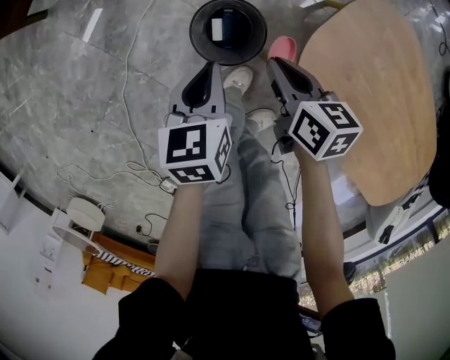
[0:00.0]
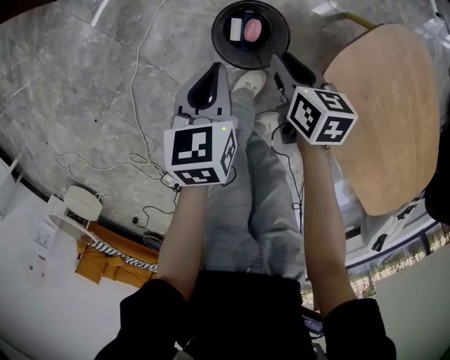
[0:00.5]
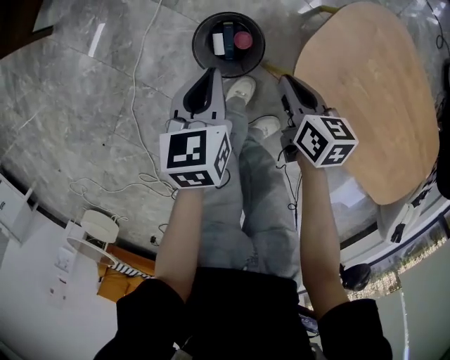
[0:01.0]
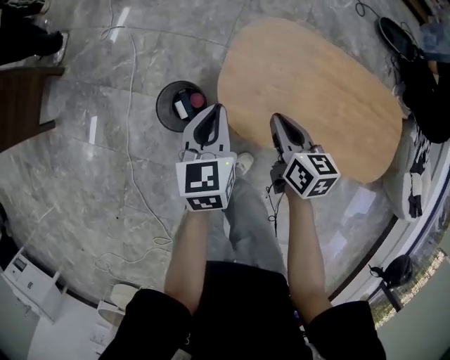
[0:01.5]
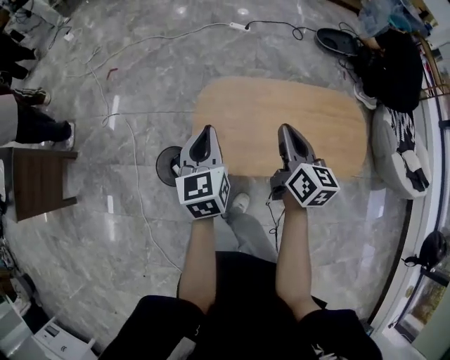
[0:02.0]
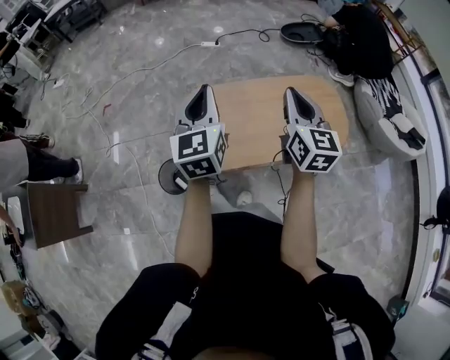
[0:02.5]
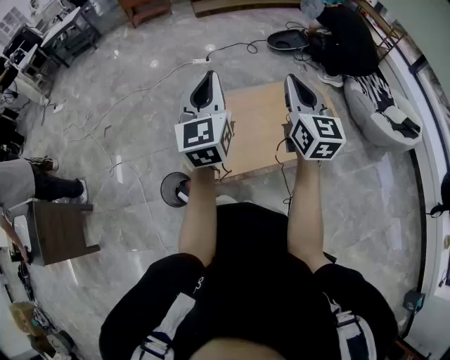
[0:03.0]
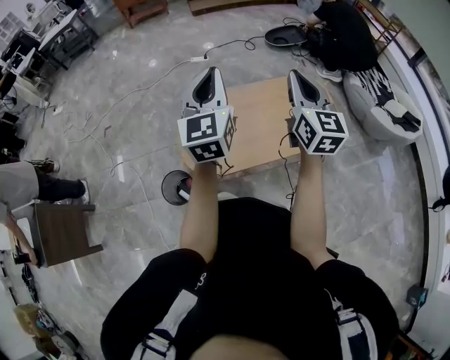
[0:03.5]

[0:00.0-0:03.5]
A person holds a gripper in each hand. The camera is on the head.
0:00.0 to 0:02.0: Both grippers move upward, about 40 cm. The right gripper changes its angle by roughly 60 degrees, while the left gripper changes its angle by approximately 40 degrees.
0:02.0 to 0:03.5: Both grippers move upward and to the right, about 30 cm. The right gripper swivels some 30 degrees. Meanwhile the left gripper rotates approximately 30 degrees.

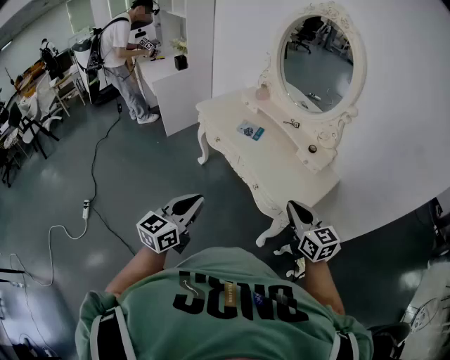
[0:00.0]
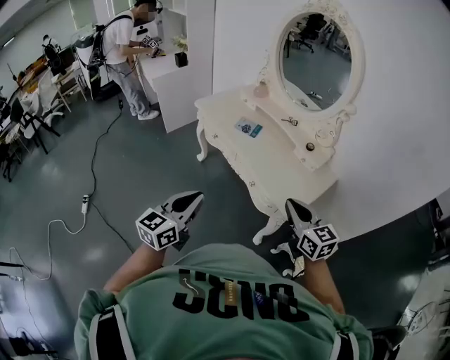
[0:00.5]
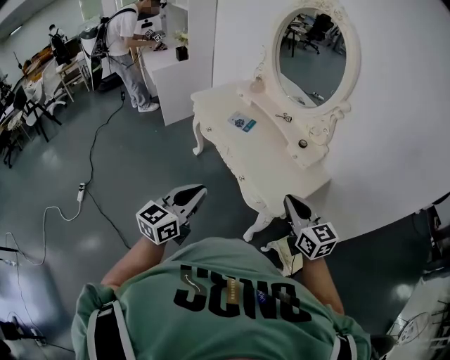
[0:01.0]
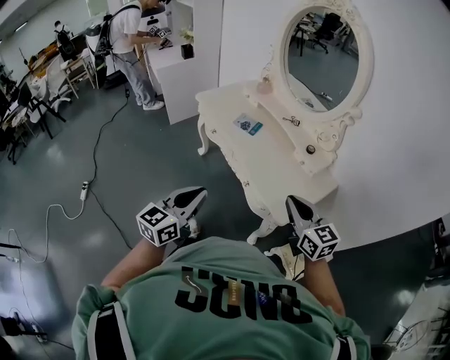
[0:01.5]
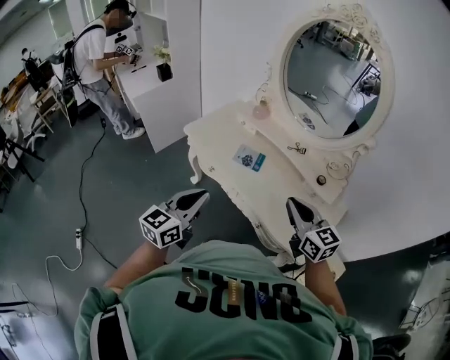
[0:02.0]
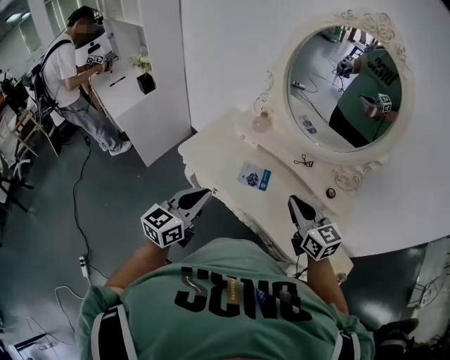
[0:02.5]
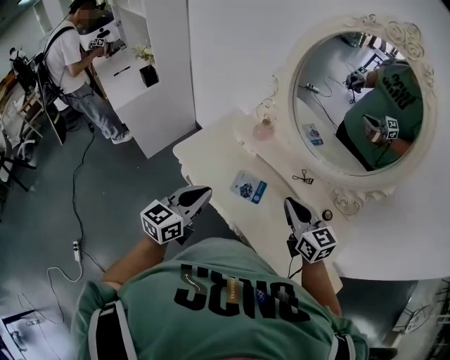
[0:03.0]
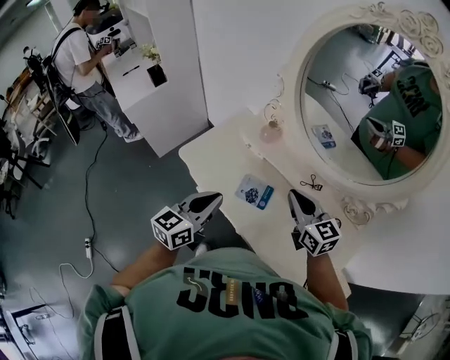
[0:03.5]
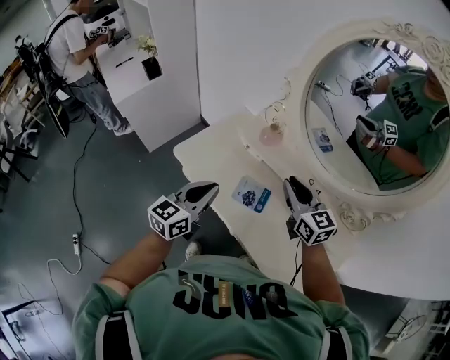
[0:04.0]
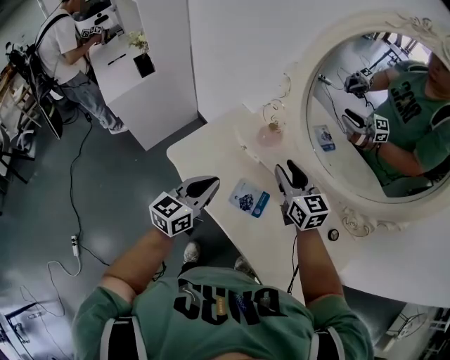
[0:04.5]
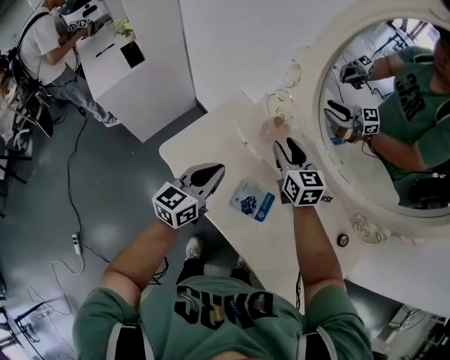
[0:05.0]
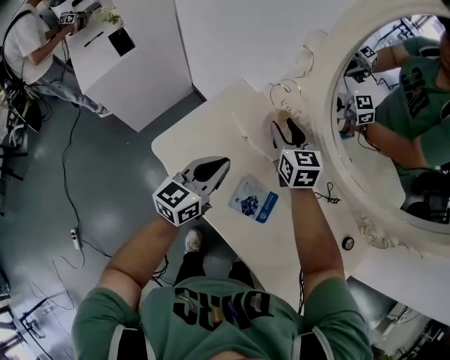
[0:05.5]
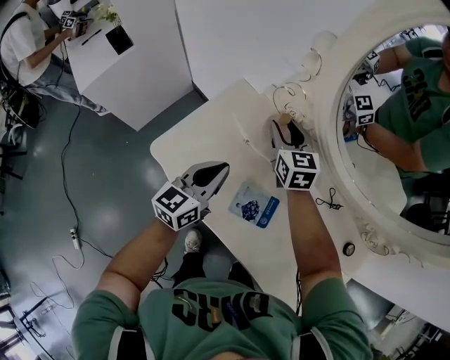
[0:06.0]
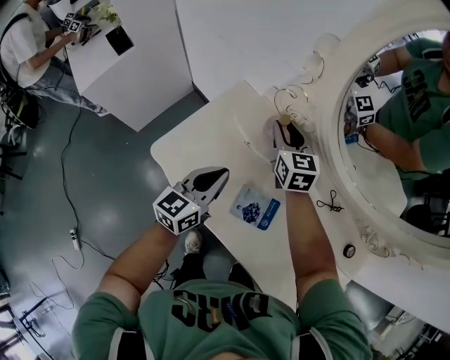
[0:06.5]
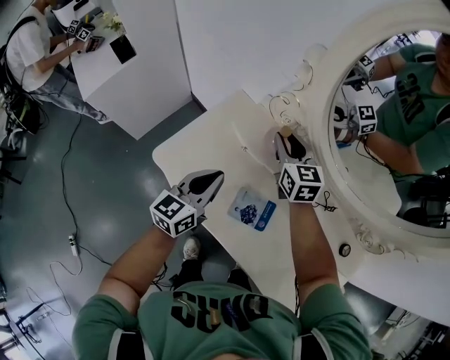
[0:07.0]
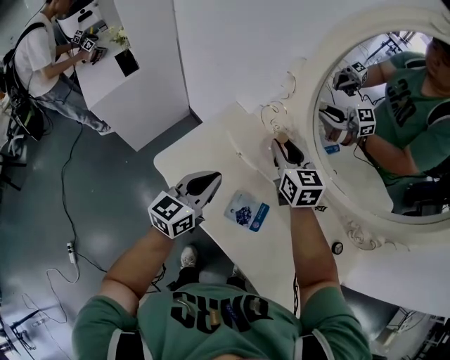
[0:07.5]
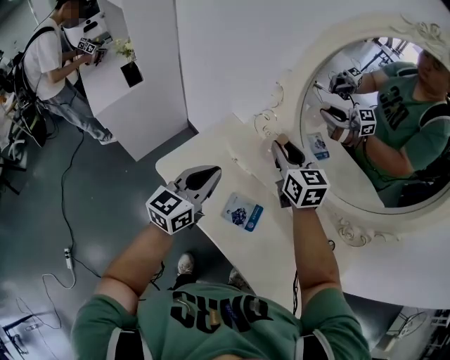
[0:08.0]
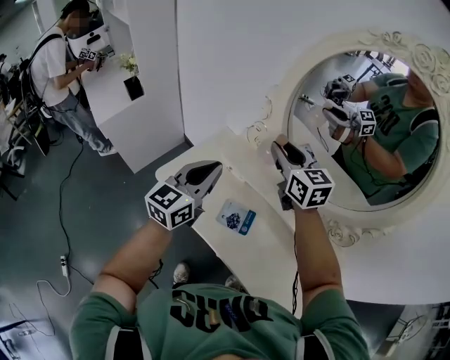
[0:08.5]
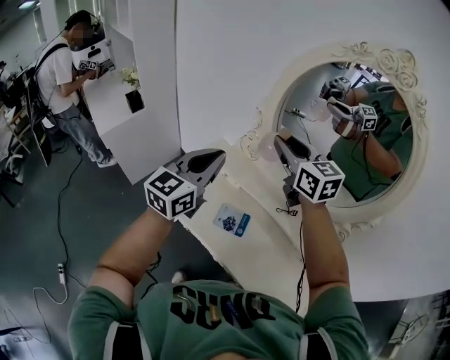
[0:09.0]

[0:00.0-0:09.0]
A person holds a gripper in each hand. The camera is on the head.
0:00.0 to 0:02.0: The two grippers go roughly 25 cm forward.
0:02.0 to 0:04.5: Both grippers move forward, roughly 35 cm. The right gripper opens its fingers.
0:04.5 to 0:07.0: The two grippers go some 15 cm forward and downward.
0:07.0 to 0:09.0: The two grippers go about 30 cm upward.

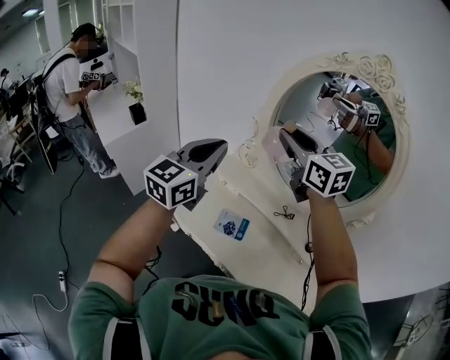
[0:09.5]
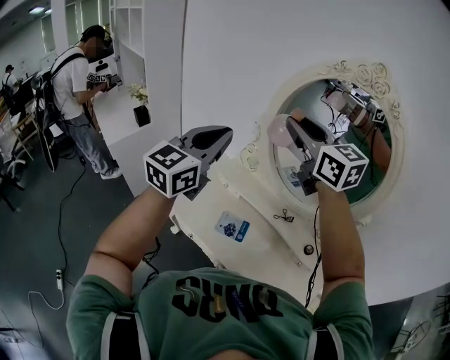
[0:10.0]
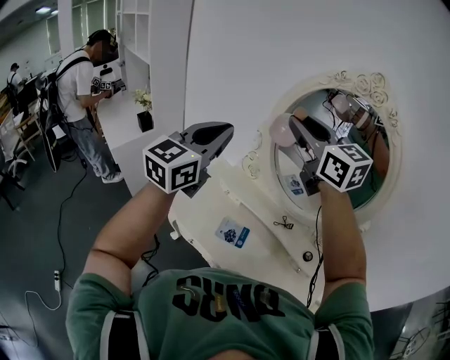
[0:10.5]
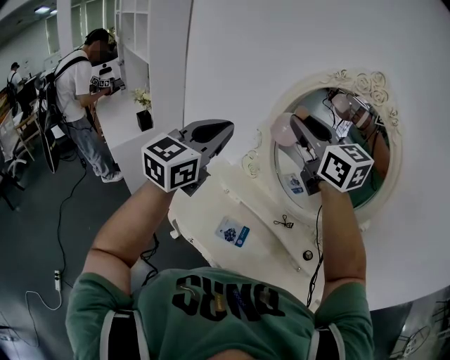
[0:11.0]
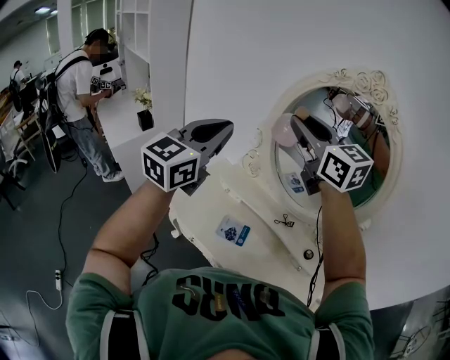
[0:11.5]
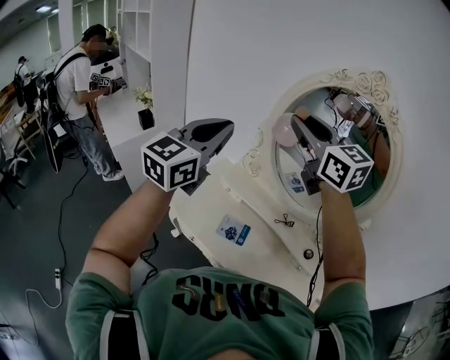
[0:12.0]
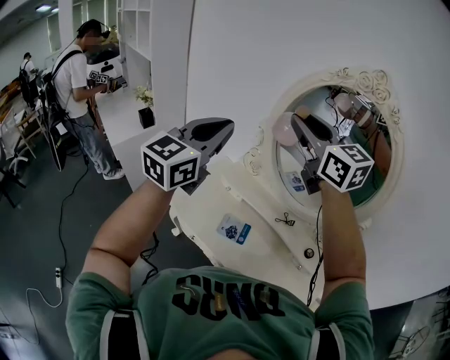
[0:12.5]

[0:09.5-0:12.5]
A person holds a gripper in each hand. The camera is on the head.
0:09.5 to 0:11.0: Both grippers travel together upward, approximately 10 cm.
0:11.0 to 0:12.5: Both grippers stay put.

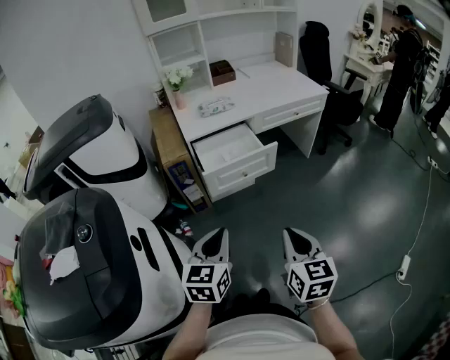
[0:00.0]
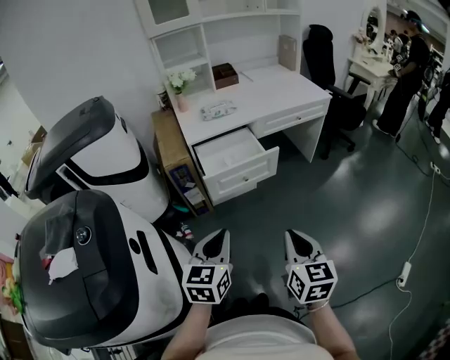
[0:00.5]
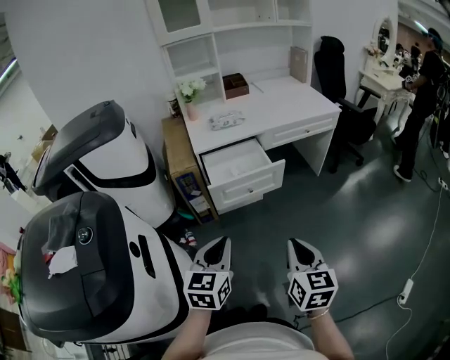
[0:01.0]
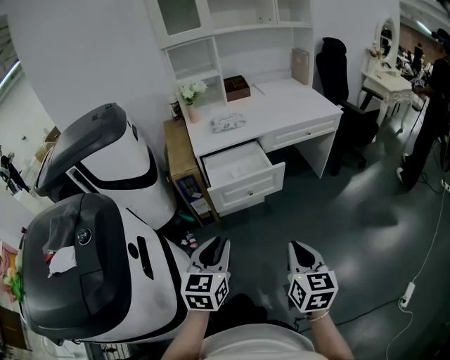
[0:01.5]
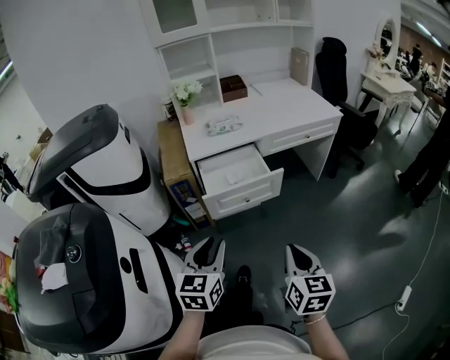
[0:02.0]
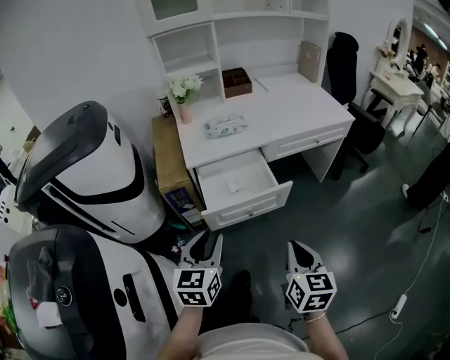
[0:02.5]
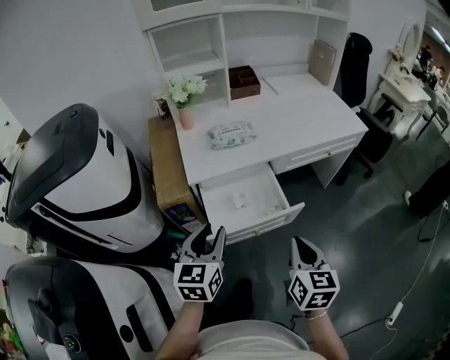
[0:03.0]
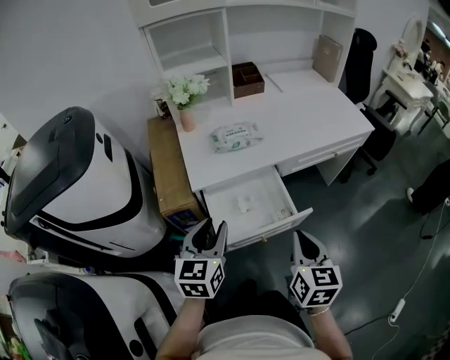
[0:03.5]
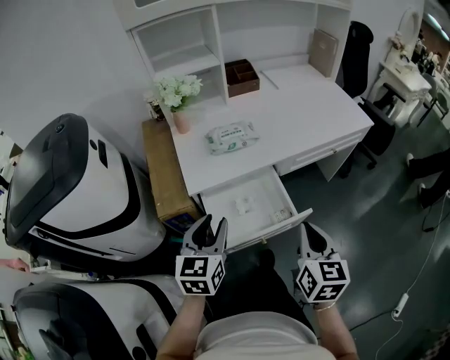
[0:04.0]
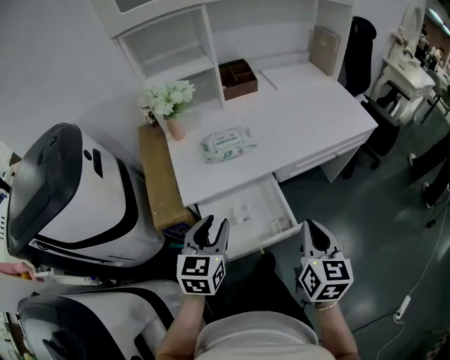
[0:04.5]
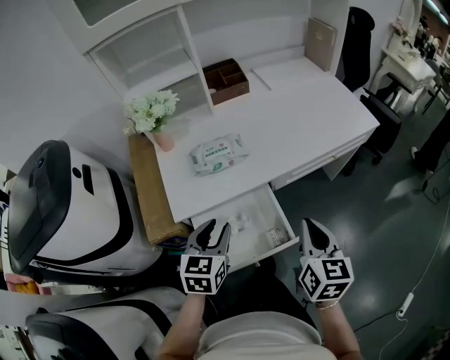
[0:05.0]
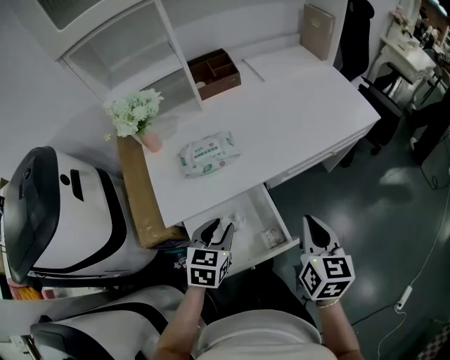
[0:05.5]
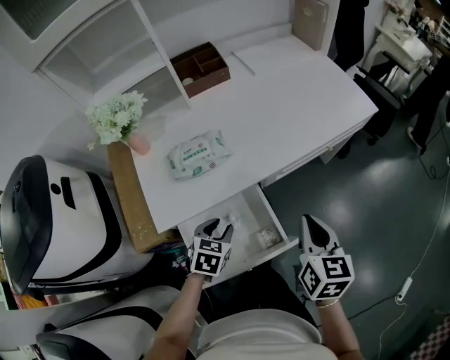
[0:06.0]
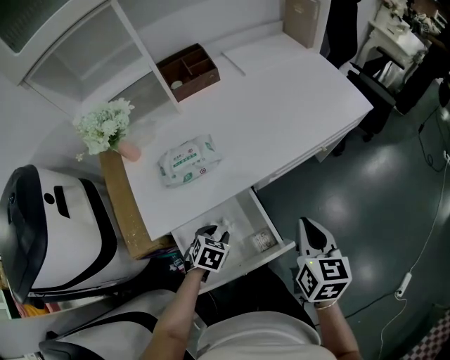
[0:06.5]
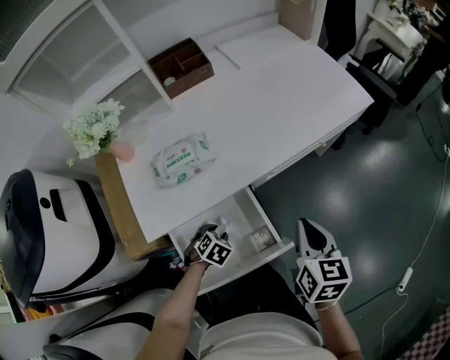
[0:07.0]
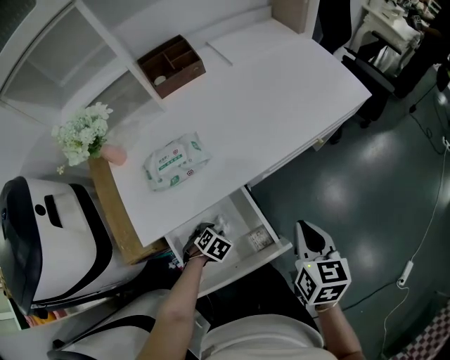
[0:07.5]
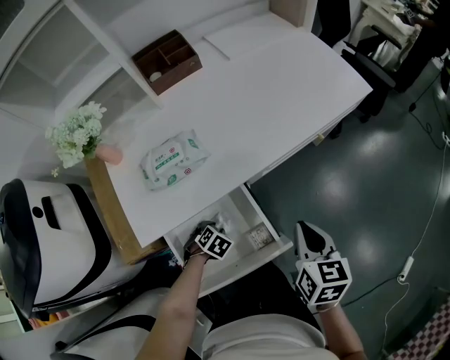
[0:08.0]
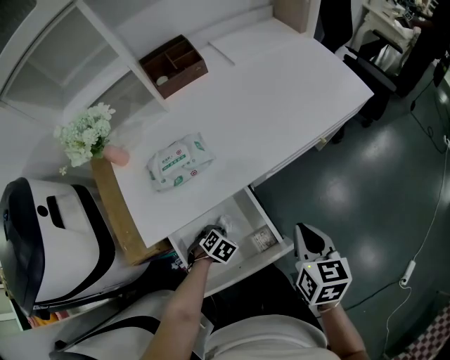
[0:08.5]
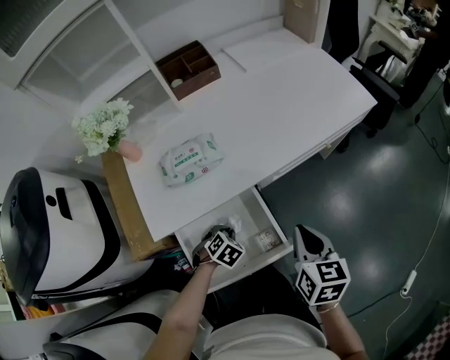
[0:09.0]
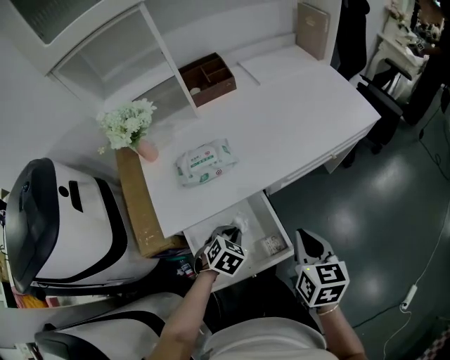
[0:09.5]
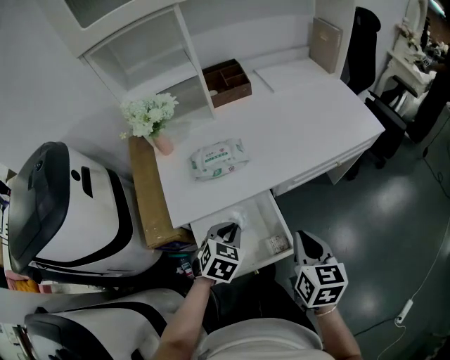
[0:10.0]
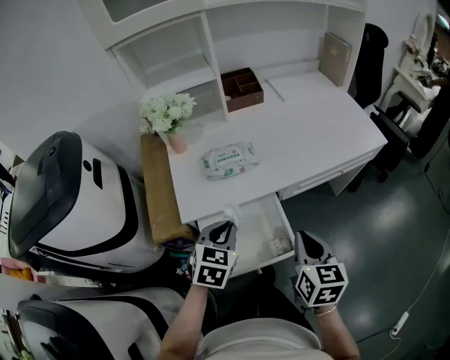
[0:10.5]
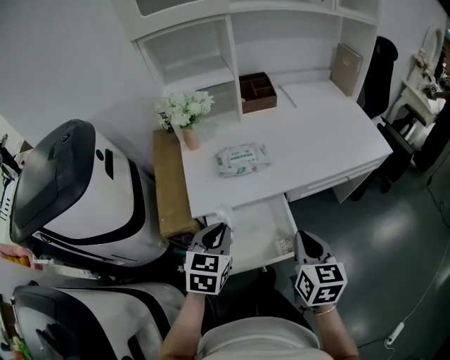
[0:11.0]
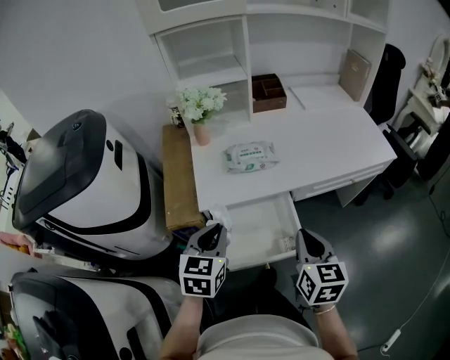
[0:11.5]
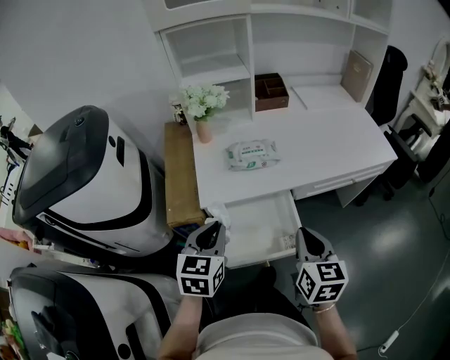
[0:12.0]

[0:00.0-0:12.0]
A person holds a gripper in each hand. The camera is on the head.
0:00.0 to 0:02.0: The two grippers go some 5 cm forward. The left gripper opens up.
0:02.0 to 0:04.0: The grippers both shift forward by some 30 cm.
0:04.0 to 0:06.0: The left gripper heads downward, forward and to the right, covering about 25 cm, and points its fingers roughly 30 degrees further downward, while the right gripper moves forward and to the right, approximately 20 cm.
0:06.0 to 0:08.0: The left gripper shifts approximately 15 cm downward, and turns by roughly 30 degrees; the right gripper moves downward, approximately 5 cm.
0:08.0 to 0:10.0: The right gripper moves some 10 cm. Meanwhile the left gripper goes some 25 cm upward, tilts its fingers approximately 30 degrees upward, and closes its fingers.
0:10.0 to 0:12.0: The right gripper shifts approximately 5 cm to the left, while the left gripper shifts about 20 cm upward, to the left and backward, and turns by roughly 30 degrees.
